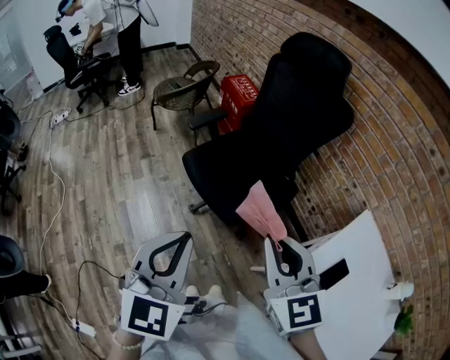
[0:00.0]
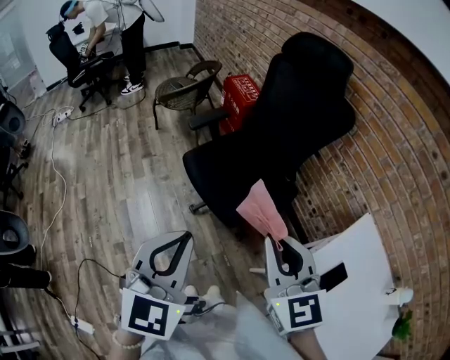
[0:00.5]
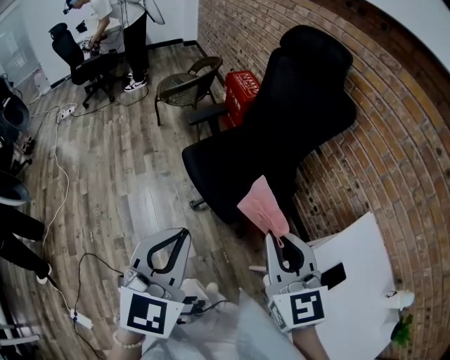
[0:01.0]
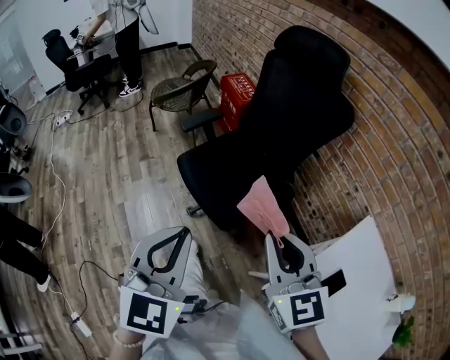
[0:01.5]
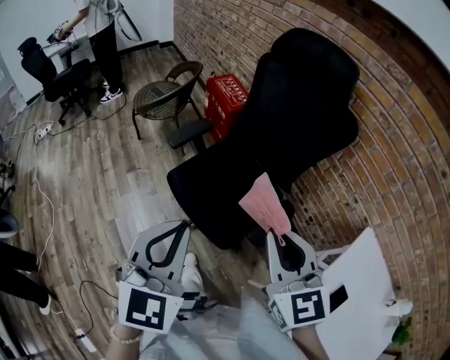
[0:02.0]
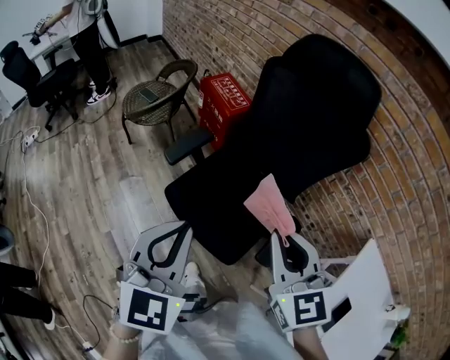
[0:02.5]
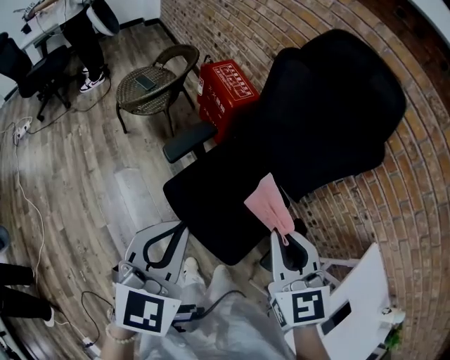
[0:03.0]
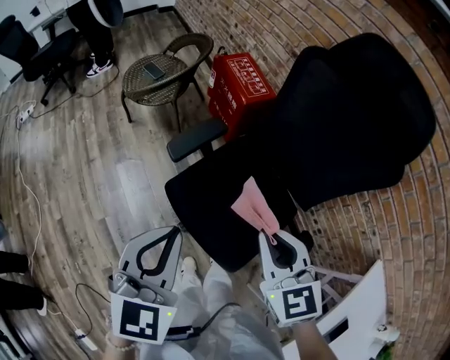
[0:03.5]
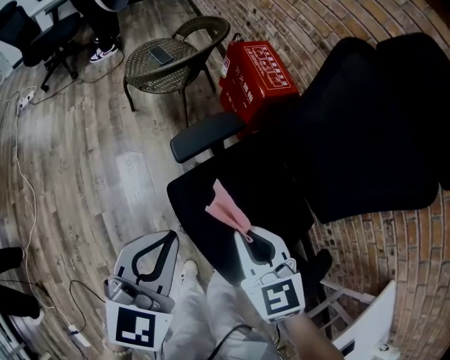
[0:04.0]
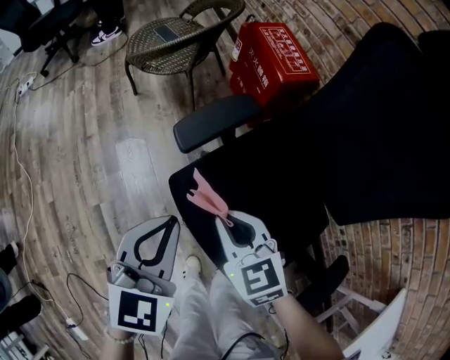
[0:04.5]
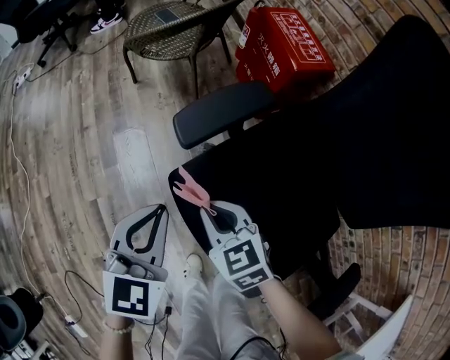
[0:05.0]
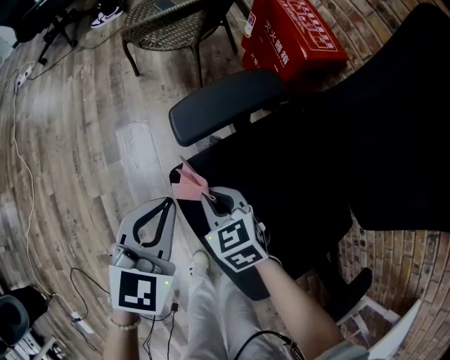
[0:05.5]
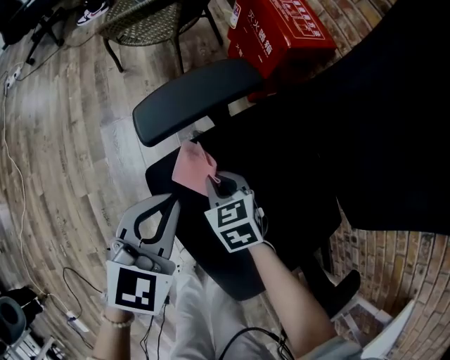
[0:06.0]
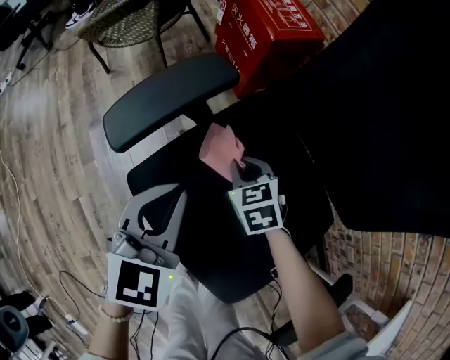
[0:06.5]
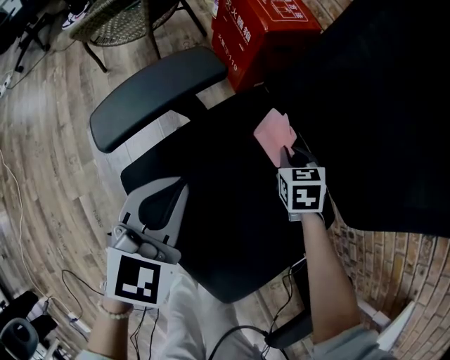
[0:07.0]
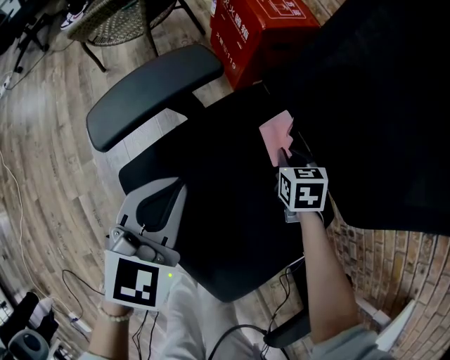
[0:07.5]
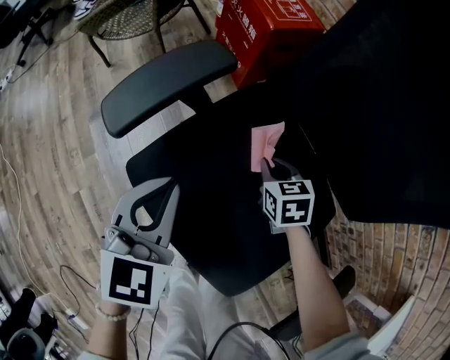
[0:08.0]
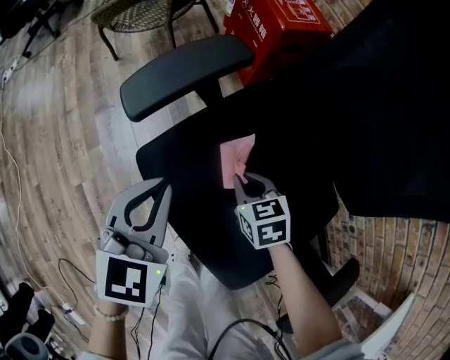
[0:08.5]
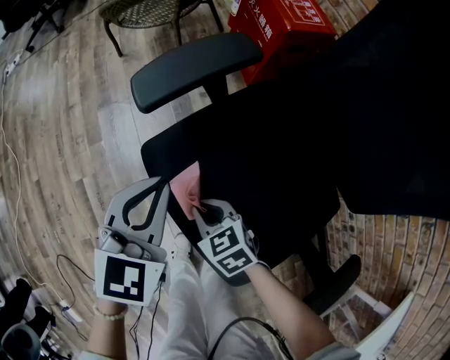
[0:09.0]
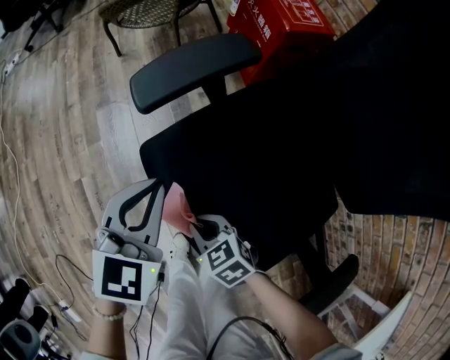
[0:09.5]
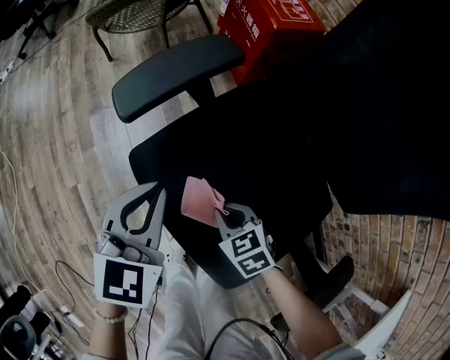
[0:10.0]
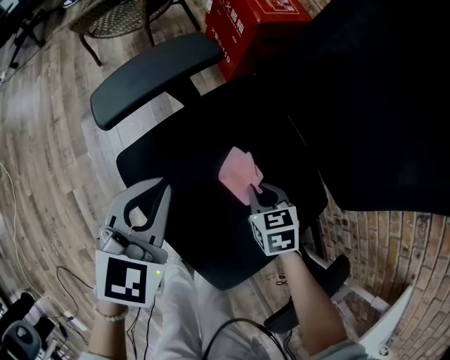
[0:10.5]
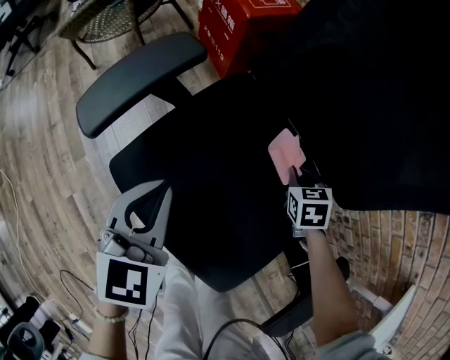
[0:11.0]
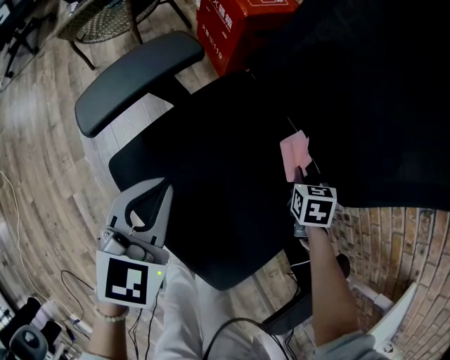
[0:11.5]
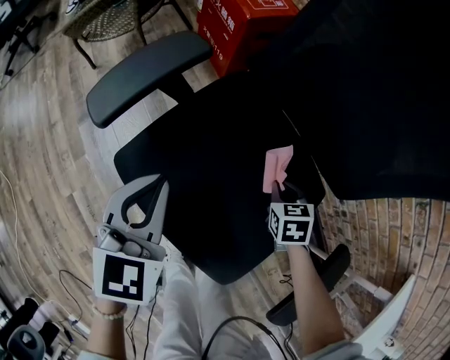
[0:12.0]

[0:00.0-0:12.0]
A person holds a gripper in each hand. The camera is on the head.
0:00.0 to 0:02.0: The grippers both shift forward by approximately 20 cm.
0:02.0 to 0:04.0: The two grippers go roughly 40 cm forward, downward and to the left. The right gripper swivels about 20 degrees.
0:04.0 to 0:06.0: The two grippers go roughly 30 cm downward and forward.
0:06.0 to 0:08.0: The left gripper moves to the right, about 5 cm. The right gripper goes some 20 cm to the right, and turns by roughly 20 degrees.
0:08.0 to 0:10.0: The right gripper moves some 20 cm, and swivels approximately 30 degrees.
0:10.0 to 0:12.0: The right gripper ends up roughly 20 cm from where it was, and changes its angle by some 40 degrees.

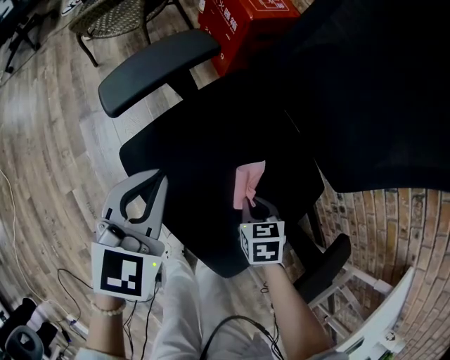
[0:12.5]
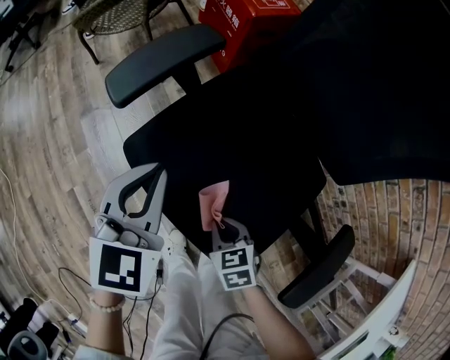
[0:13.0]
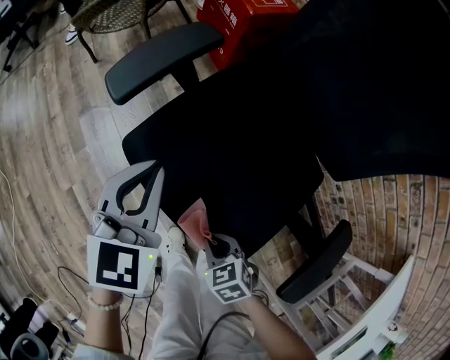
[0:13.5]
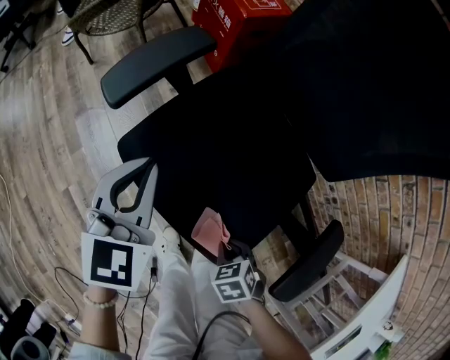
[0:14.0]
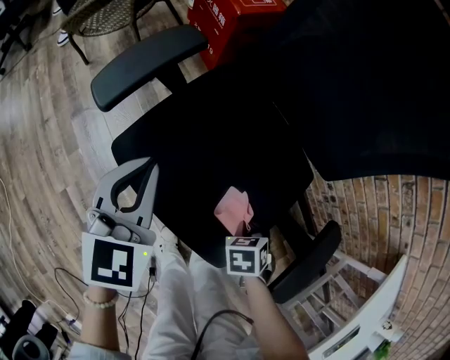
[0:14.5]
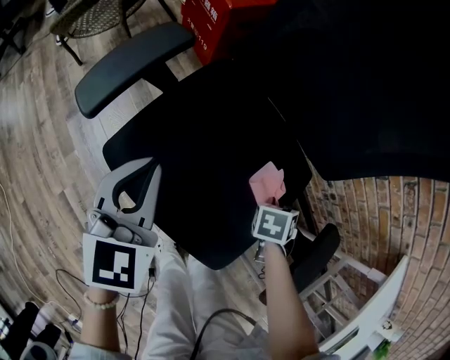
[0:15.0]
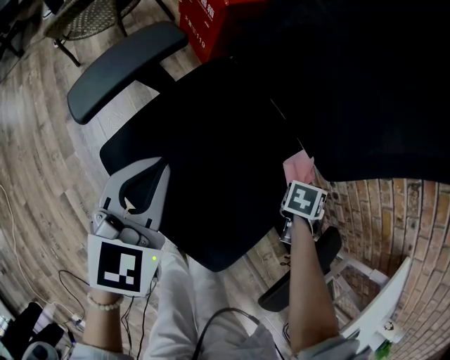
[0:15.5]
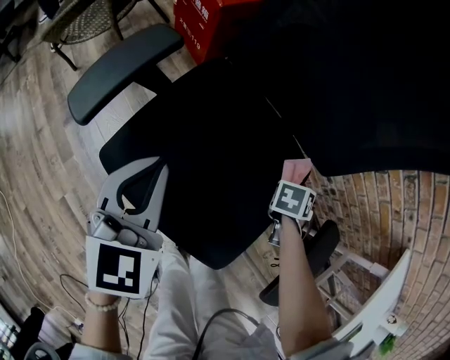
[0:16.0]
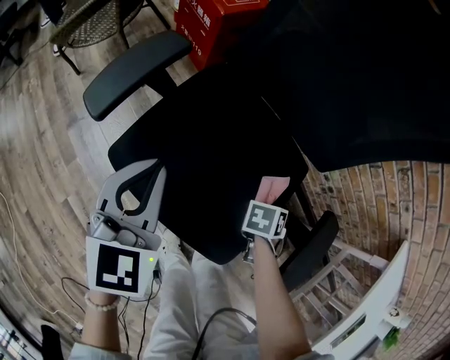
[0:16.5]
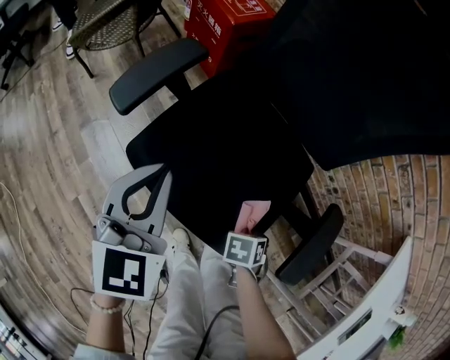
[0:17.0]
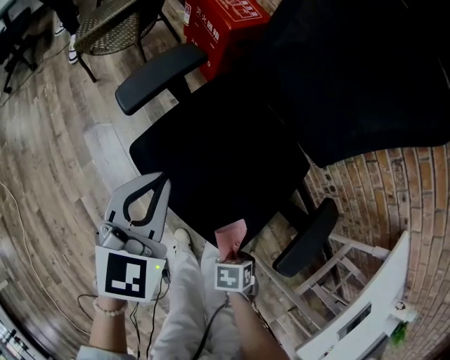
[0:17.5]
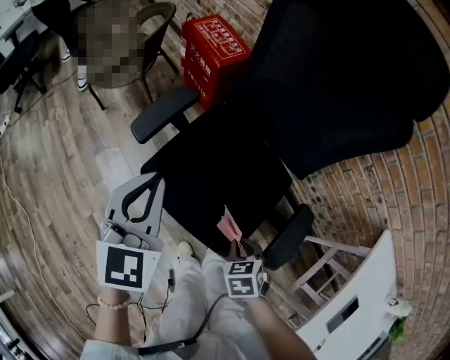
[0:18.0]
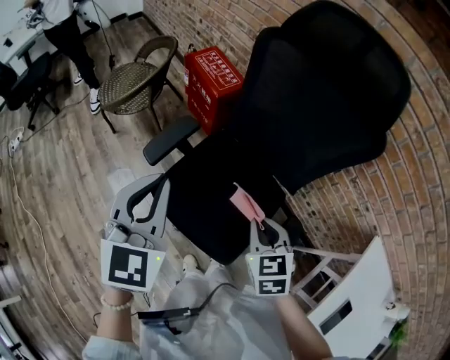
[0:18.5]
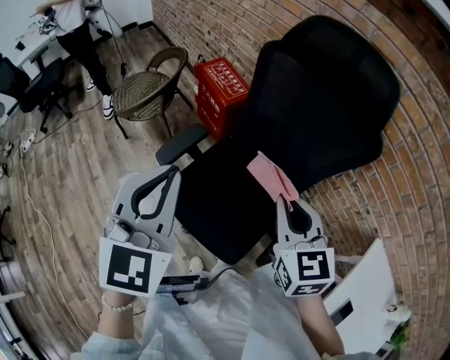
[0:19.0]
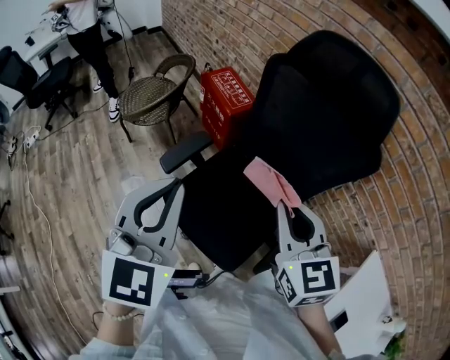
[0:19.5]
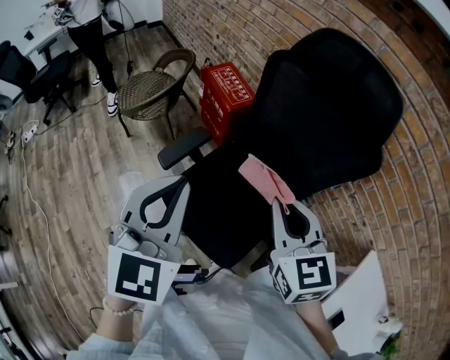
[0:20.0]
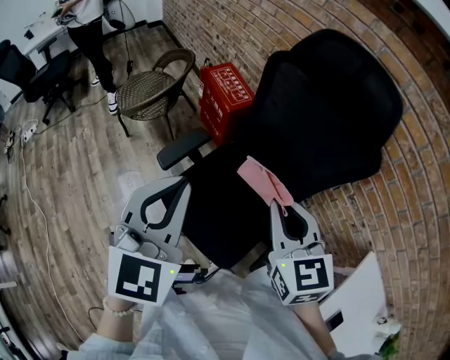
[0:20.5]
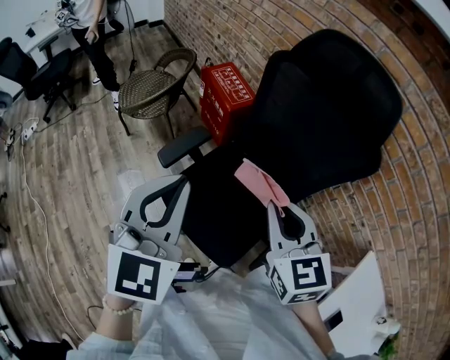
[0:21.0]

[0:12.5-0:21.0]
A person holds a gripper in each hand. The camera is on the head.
0:12.5 to 0:14.5: The right gripper turns by roughly 20 degrees.
0:14.5 to 0:16.5: The right gripper changes its angle by about 30 degrees.
0:16.5 to 0:19.0: Both grippers travel together upward, approximately 50 cm. The right gripper tilts its fingers approximately 50 degrees upward.
0:19.0 to 0:21.0: There are only small adjustments of the grippers.

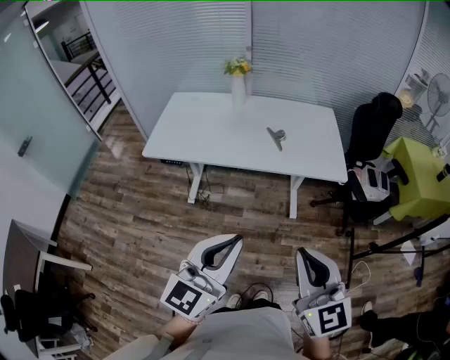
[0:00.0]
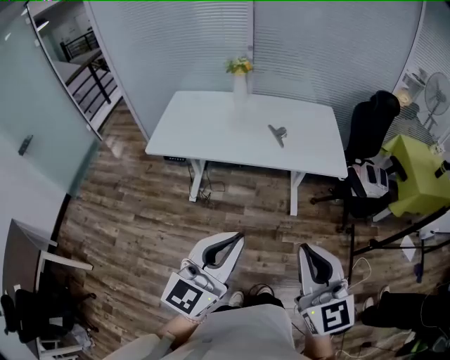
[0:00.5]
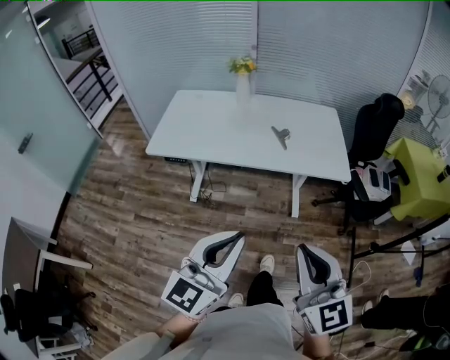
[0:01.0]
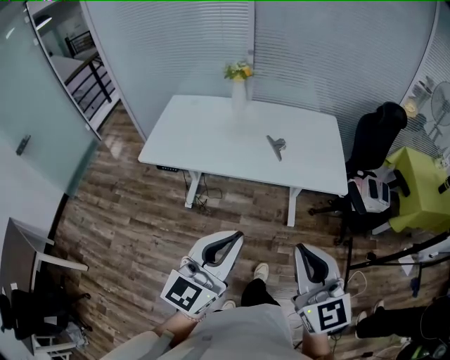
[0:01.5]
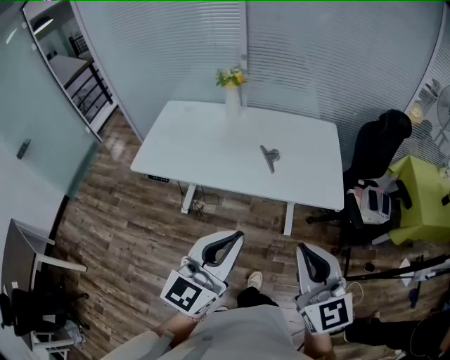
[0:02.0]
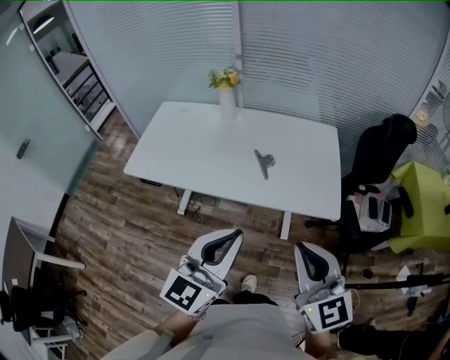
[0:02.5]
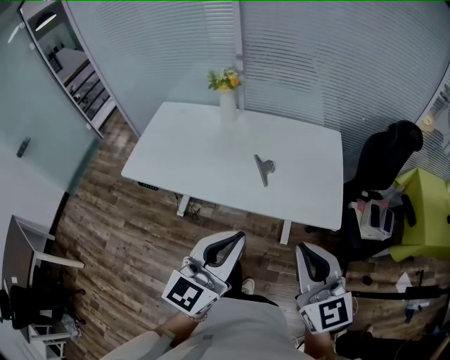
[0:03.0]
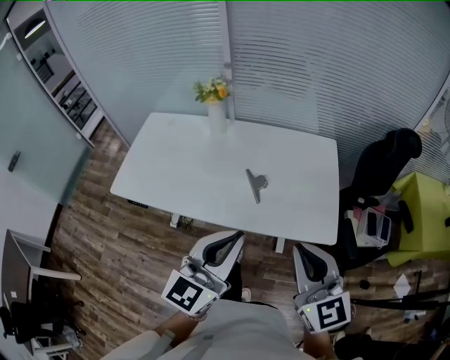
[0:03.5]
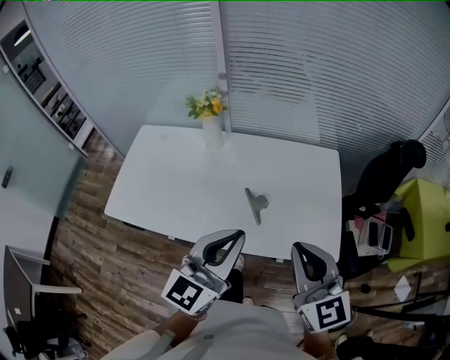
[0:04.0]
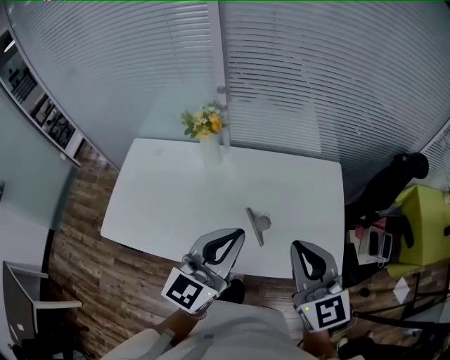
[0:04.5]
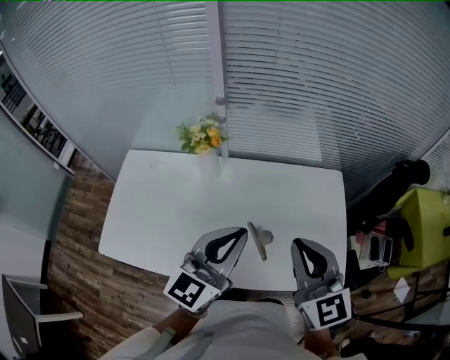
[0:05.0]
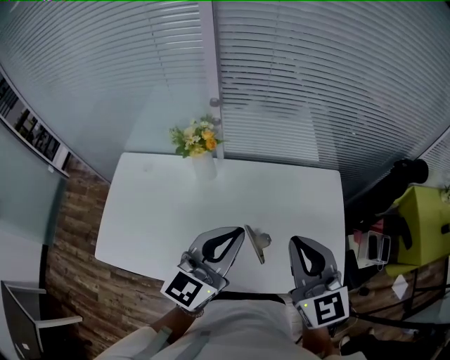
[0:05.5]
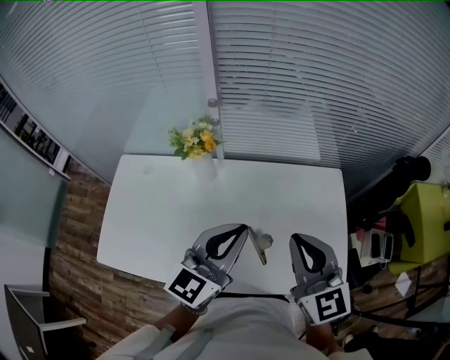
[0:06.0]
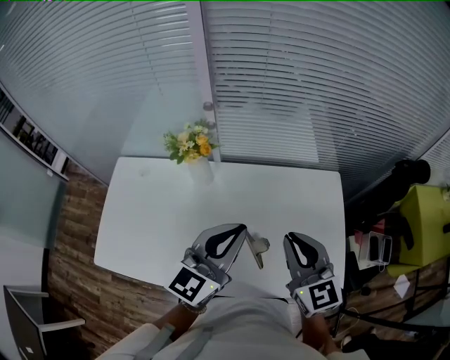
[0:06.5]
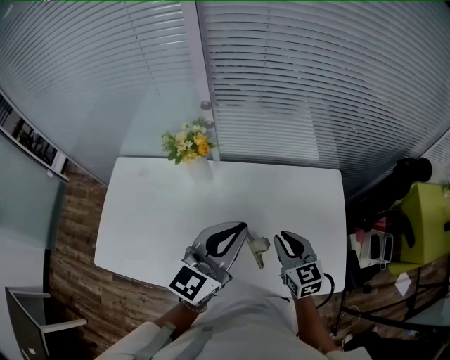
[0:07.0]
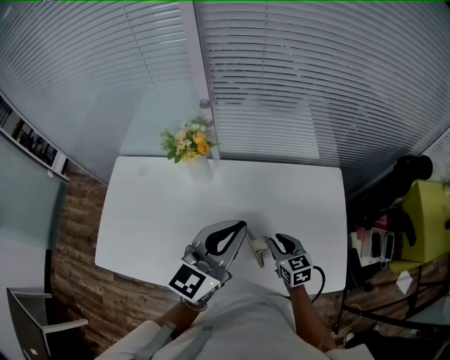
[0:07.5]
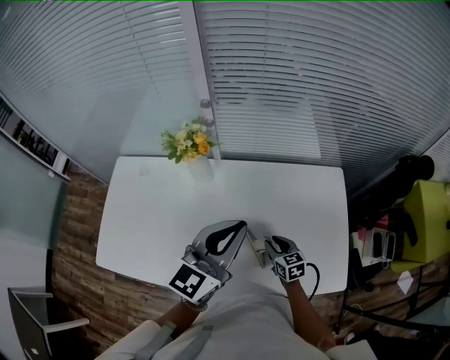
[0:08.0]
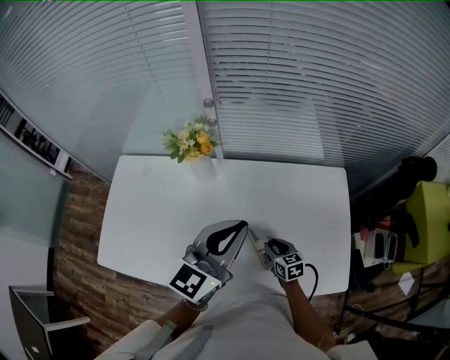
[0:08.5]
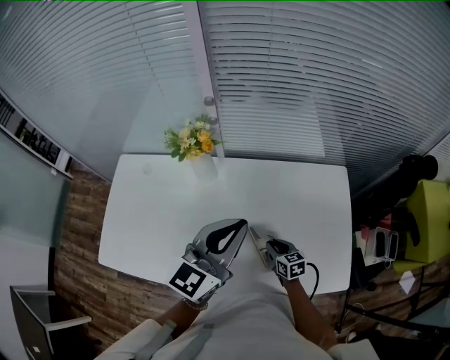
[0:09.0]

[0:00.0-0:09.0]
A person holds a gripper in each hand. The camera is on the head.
0:00.0 to 0:02.0: Both grippers move forward and to the right, some 15 cm.
0:02.0 to 0:04.5: Both grippers are carried forward, about 40 cm.
0:04.5 to 0:07.0: The left gripper travels forward by approximately 15 cm, while the right gripper shifts approximately 25 cm downward and forward, and swivels some 20 degrees.
0:07.0 to 0:09.0: The right gripper shifts roughly 20 cm downward, and changes its angle by approximately 20 degrees.
